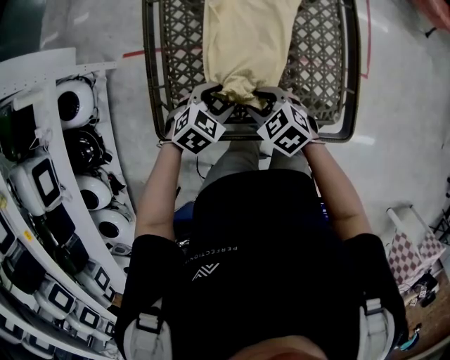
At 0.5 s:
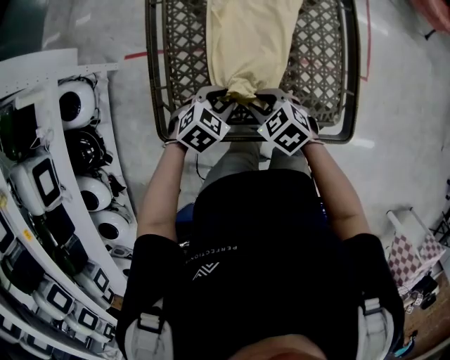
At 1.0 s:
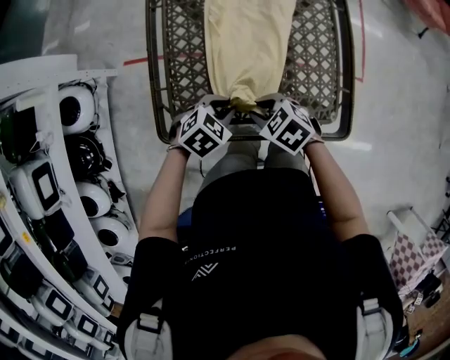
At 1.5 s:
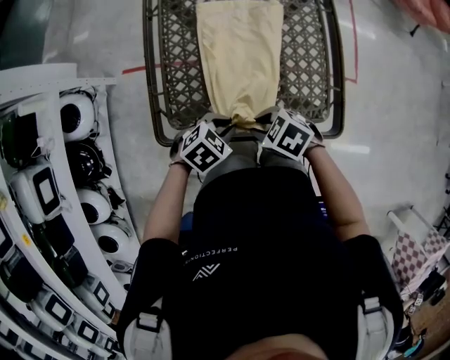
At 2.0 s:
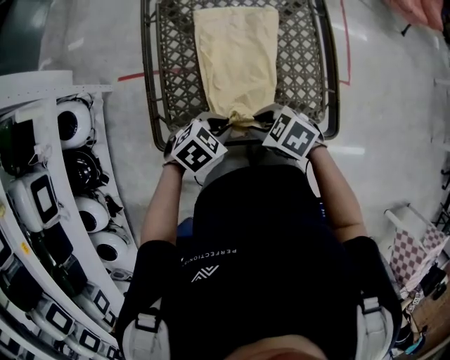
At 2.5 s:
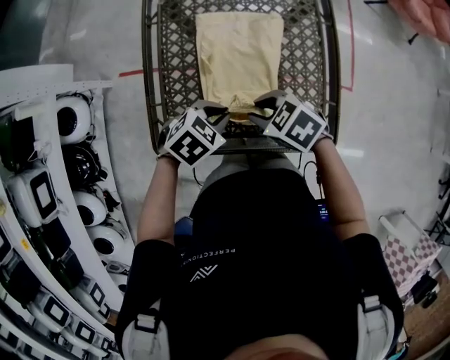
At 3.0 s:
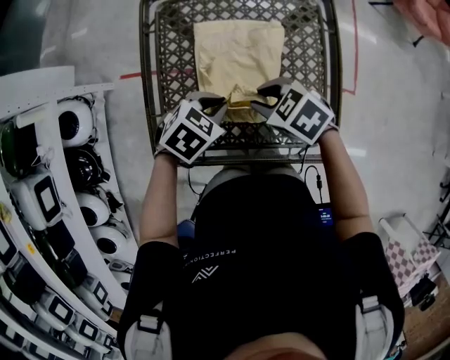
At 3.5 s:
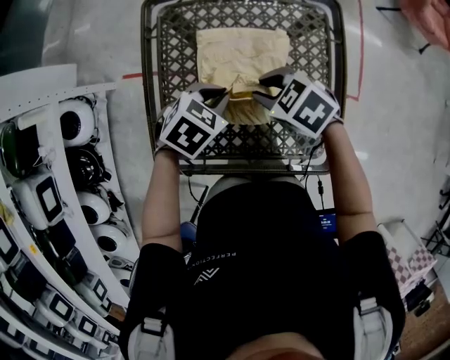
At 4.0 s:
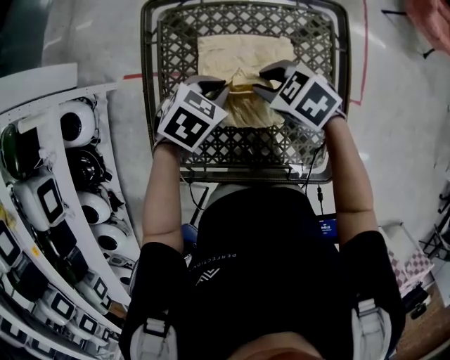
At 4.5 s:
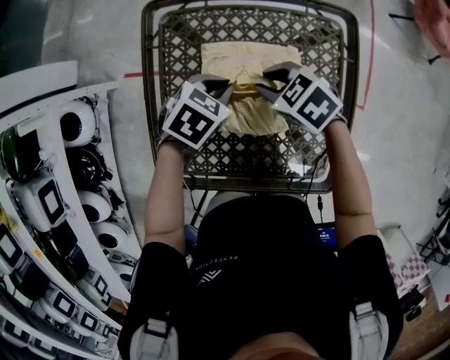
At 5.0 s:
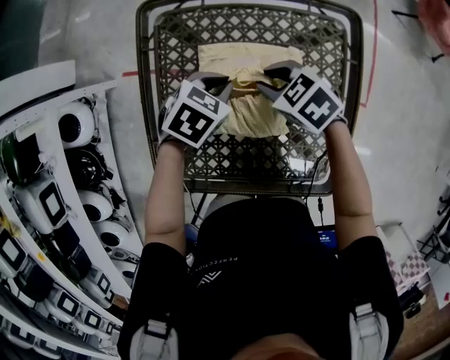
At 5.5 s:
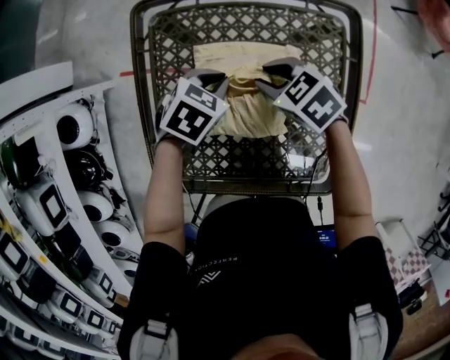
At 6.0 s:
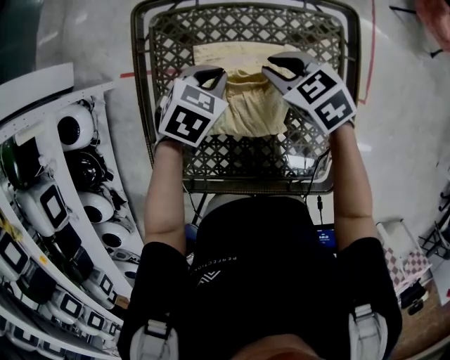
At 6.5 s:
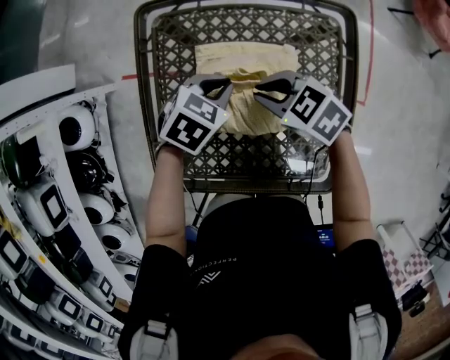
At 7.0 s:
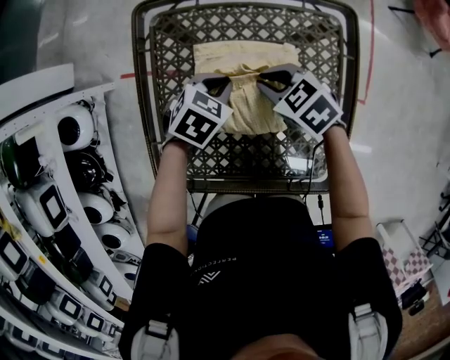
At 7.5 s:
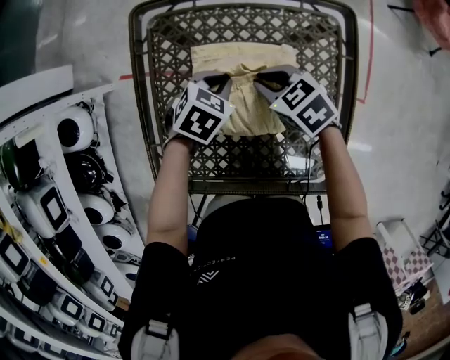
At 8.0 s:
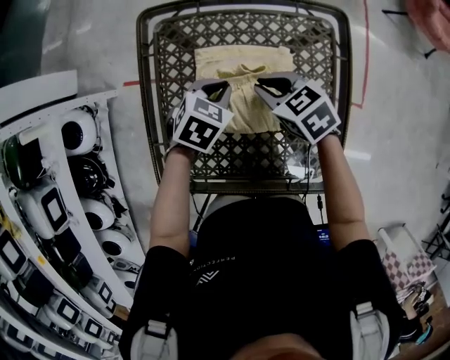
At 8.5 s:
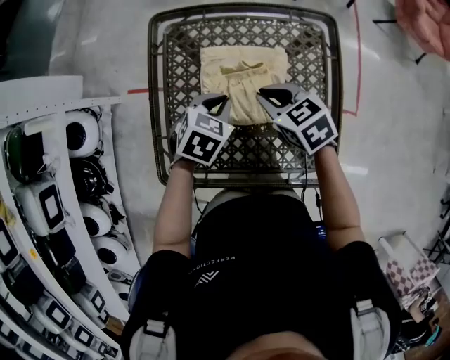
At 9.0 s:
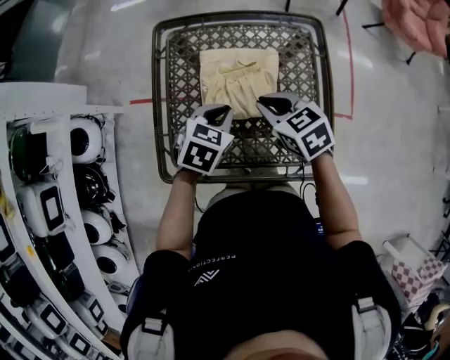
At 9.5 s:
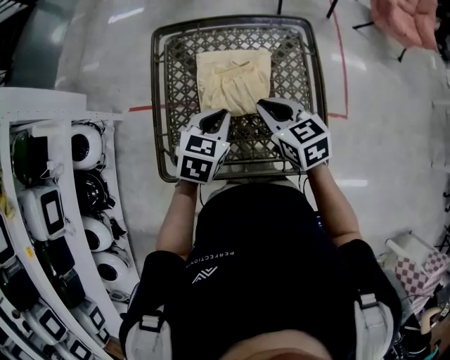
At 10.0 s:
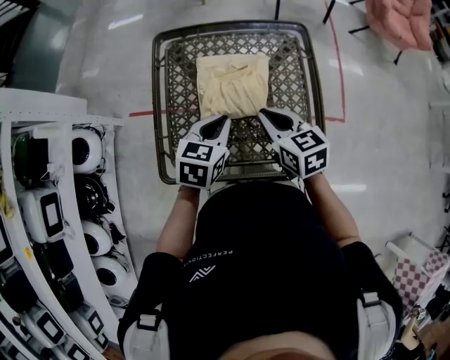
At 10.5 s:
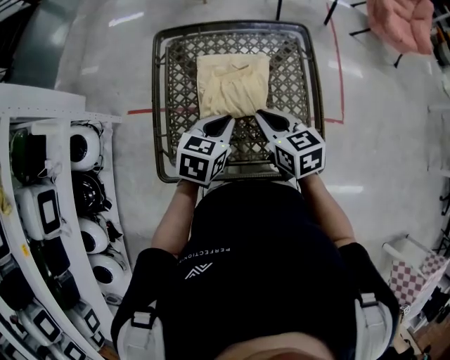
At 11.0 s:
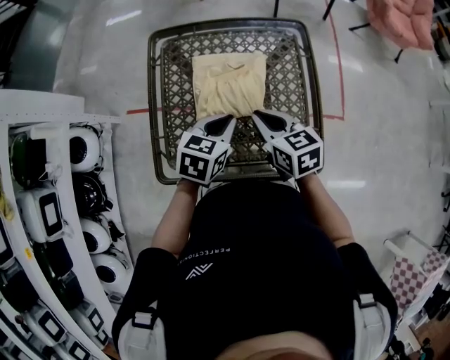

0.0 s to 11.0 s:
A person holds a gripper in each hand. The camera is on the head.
0.0 to 2.0 s: The left gripper changes place by about 10 cm, and closes its fingers; the right gripper travels upward by approximately 5 cm.
2.0 to 3.5 s: The right gripper shifts by approximately 20 cm. Meanwhile the left gripper shifts by approximately 20 cm.
3.5 to 5.5 s: The right gripper moves some 10 cm, while the left gripper ends up roughly 10 cm from where it was.
5.5 to 7.5 s: There are only small adjustments of the grippers.
7.5 to 9.0 s: The two grippers go approximately 15 cm backward and upward.
9.0 to 11.0 s: The left gripper changes place by roughly 5 cm.

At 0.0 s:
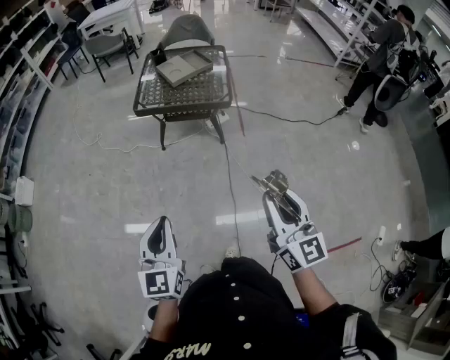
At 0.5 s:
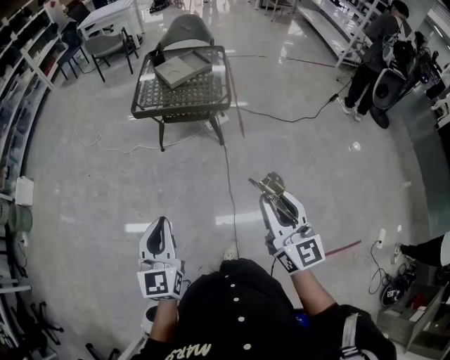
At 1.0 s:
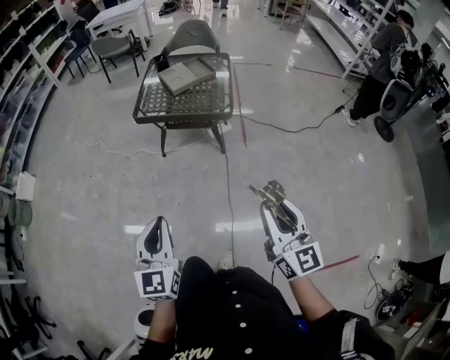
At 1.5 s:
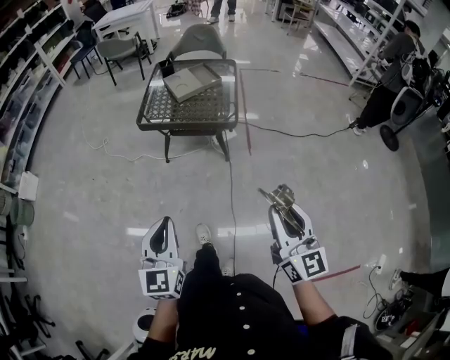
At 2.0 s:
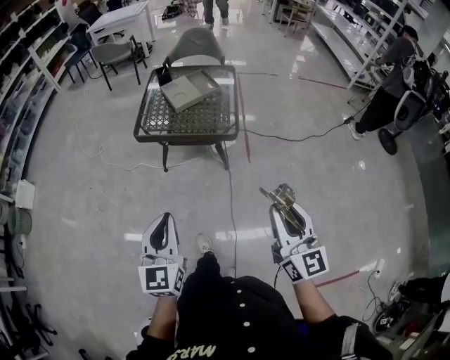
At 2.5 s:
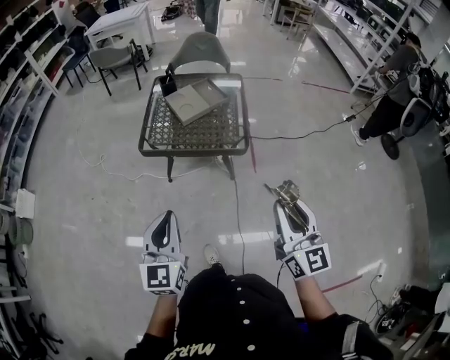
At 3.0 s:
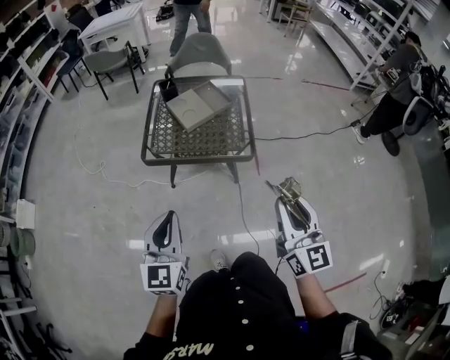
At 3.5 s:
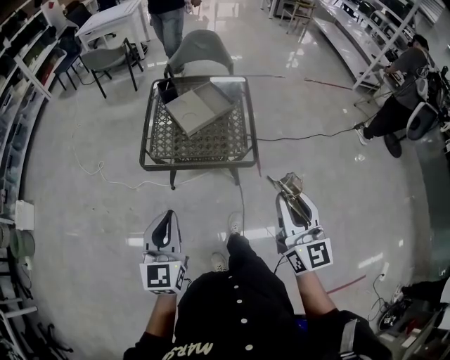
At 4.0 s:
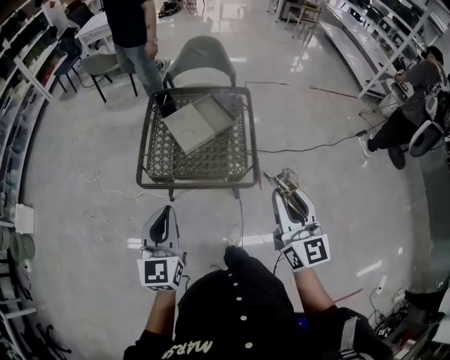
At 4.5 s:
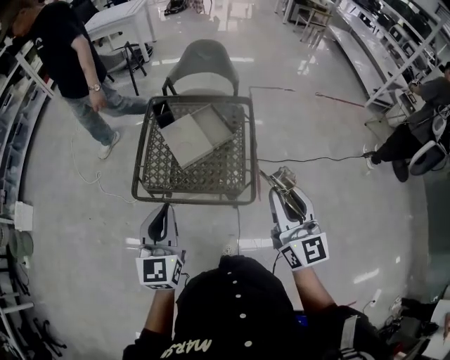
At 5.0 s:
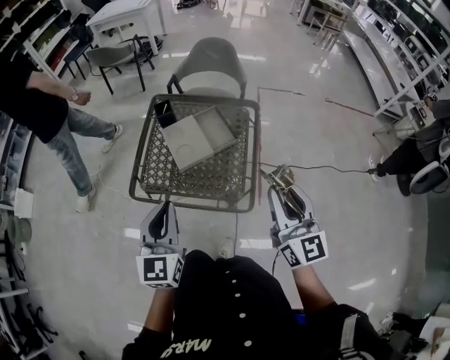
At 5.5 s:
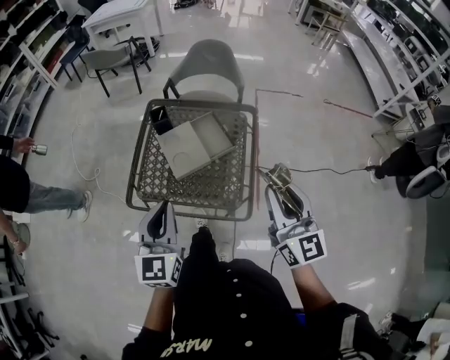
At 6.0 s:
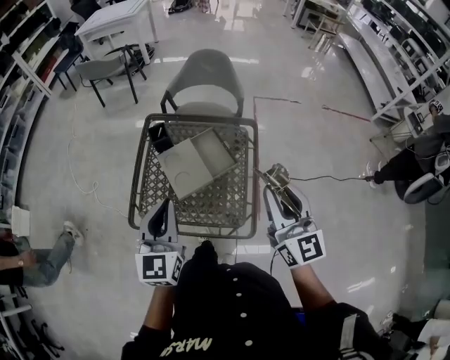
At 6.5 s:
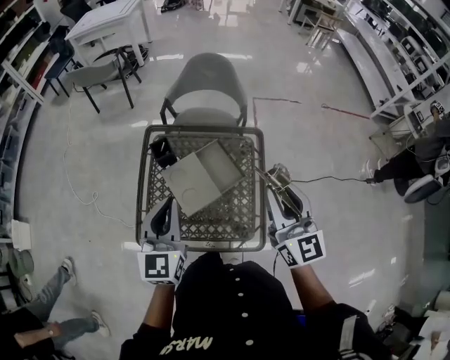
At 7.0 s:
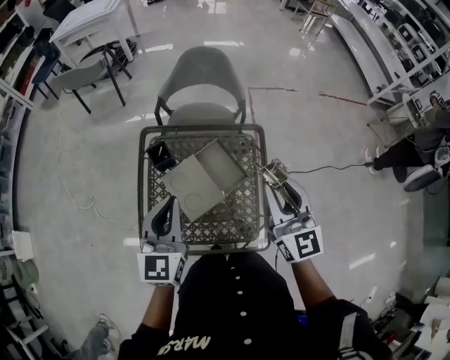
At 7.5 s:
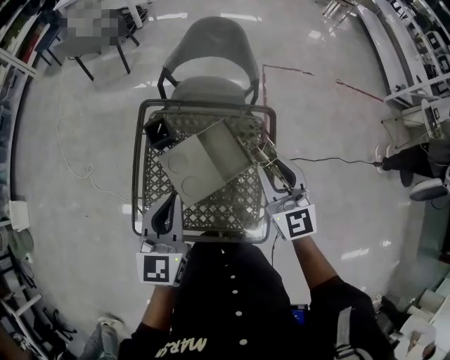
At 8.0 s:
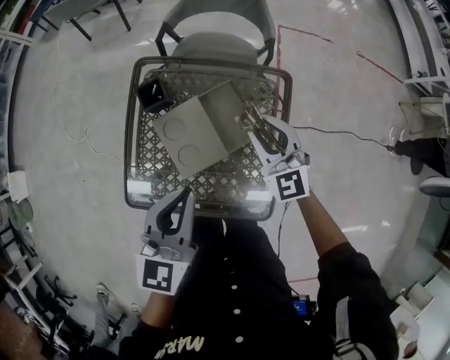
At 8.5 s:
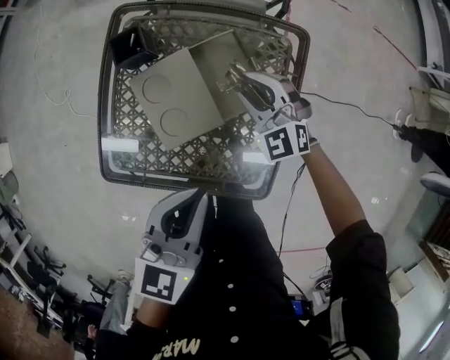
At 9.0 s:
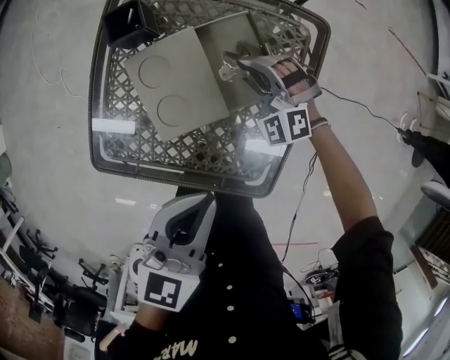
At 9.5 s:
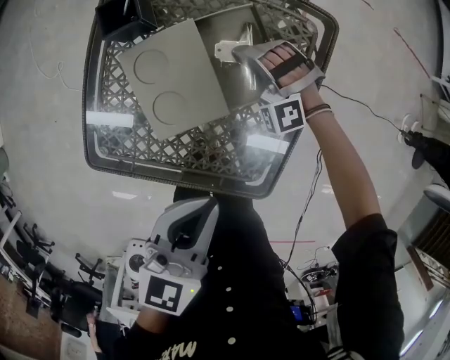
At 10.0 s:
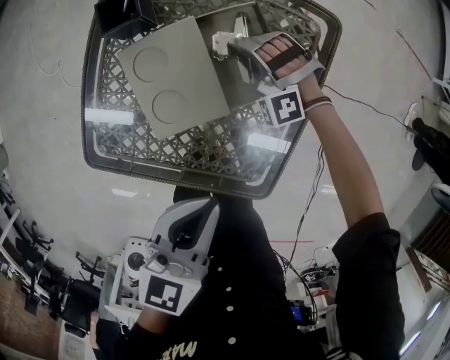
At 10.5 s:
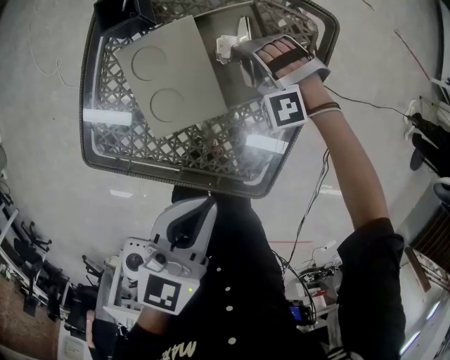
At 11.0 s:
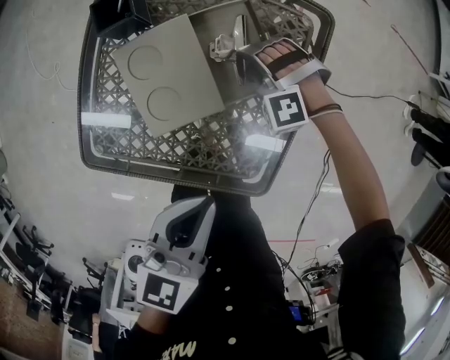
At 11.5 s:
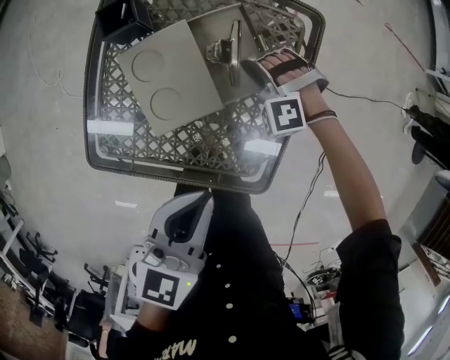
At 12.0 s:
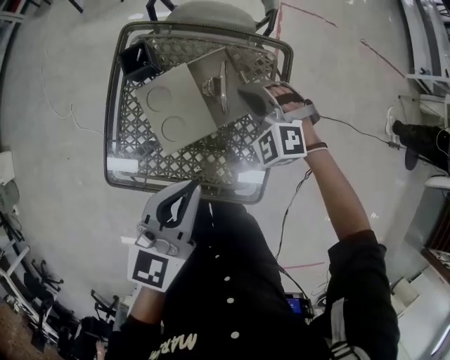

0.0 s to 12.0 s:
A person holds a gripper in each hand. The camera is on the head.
0.0 to 2.0 s: The two grippers go about 20 cm forward.
2.0 to 4.0 s: The two grippers go roughly 35 cm forward.
4.0 to 6.0 s: Both grippers travel together forward, roughly 25 cm.
6.0 to 8.0 s: The right gripper is displaced forward and downward by roughly 35 cm, and rotates some 30 degrees, while the left gripper goes approximately 15 cm forward and downward.
8.0 to 10.0 s: The left gripper is displaced downward, backward and to the right by approximately 15 cm. Meanwhile the right gripper moves downward, some 25 cm, and twists roughly 70 degrees counterclockwise, seen from behind.
10.0 to 12.0 s: The left gripper shifts about 10 cm upward, while the right gripper heads upward, covering about 15 cm, swivels some 30 degrees, and closes.

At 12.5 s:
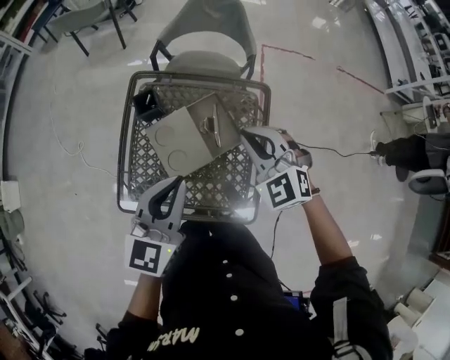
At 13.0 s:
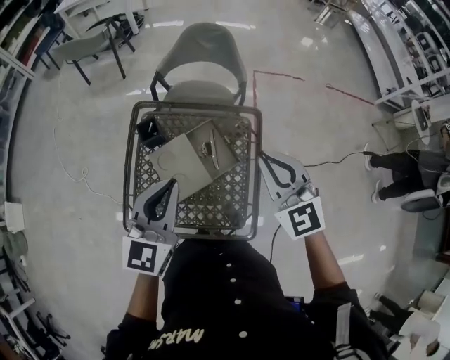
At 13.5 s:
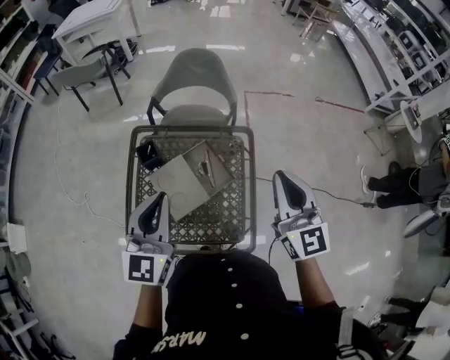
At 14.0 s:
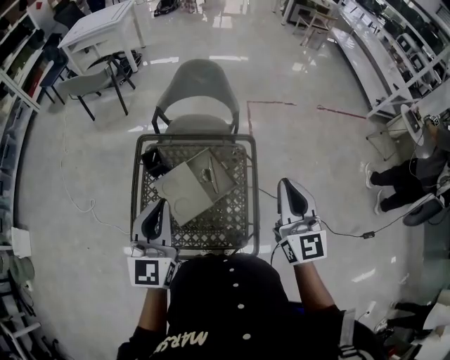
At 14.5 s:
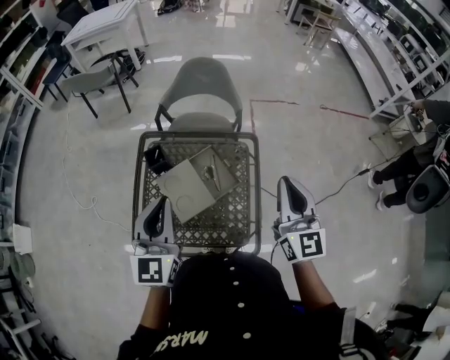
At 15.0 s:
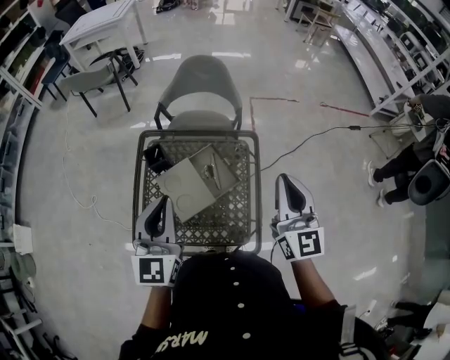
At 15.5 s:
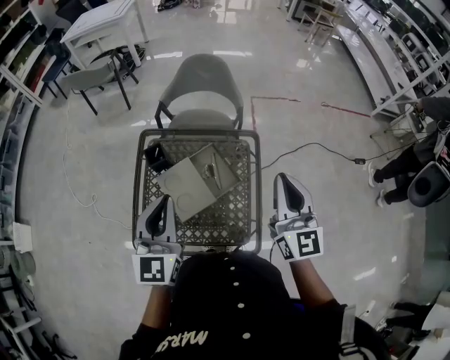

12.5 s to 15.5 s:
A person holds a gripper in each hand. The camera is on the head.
12.5 to 14.0 s: The right gripper goes some 20 cm upward, to the right and backward, and tilts its fingers approximately 30 degrees upward; the left gripper is displaced upward by approximately 10 cm.
14.0 to 15.5 s: The grippers make only small movements.

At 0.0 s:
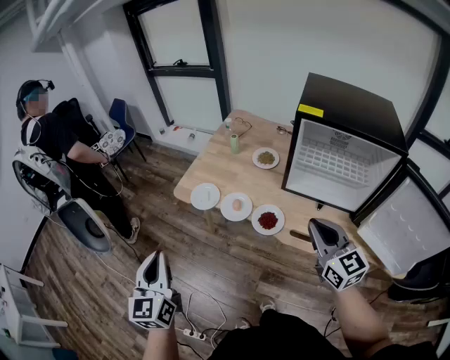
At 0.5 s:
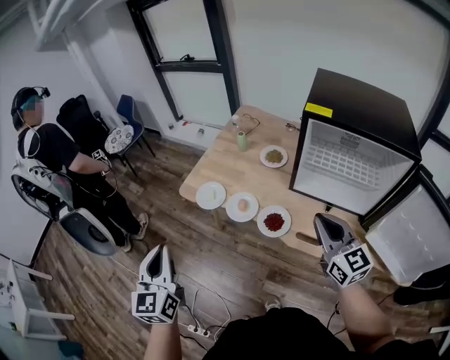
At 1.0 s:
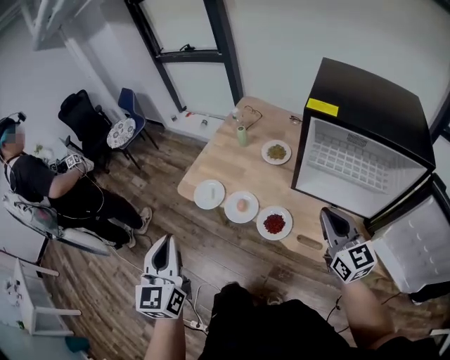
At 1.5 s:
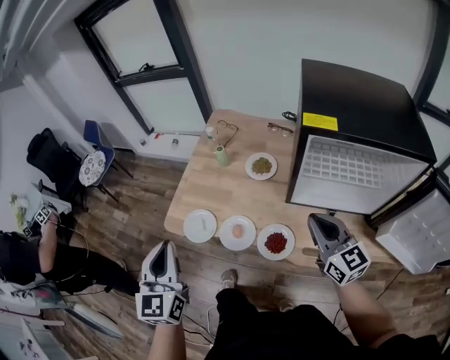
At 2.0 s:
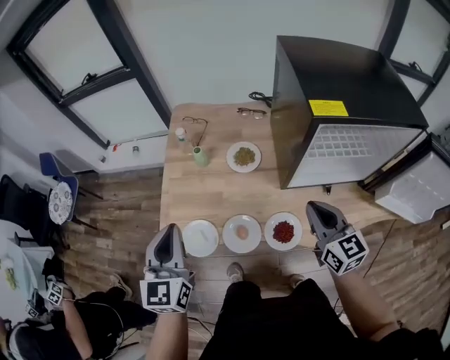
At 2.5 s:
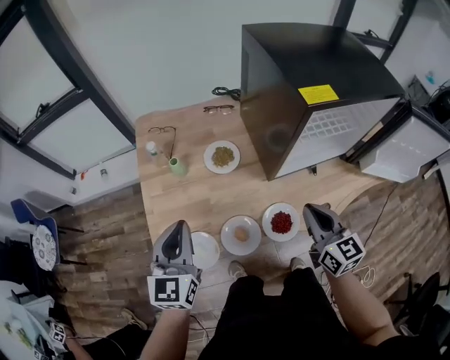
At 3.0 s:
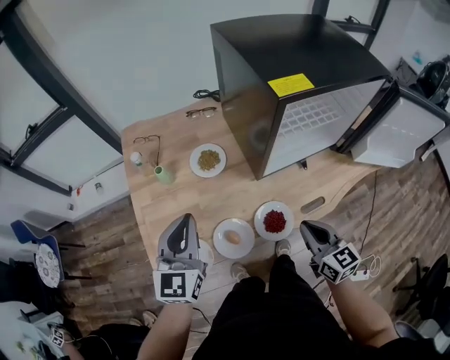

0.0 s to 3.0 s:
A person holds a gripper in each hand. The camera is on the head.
0.0 to 1.5 s: Both grippers move forward, about 20 cm.
1.5 to 3.0 s: The left gripper shifts by approximately 25 cm, and swivels about 40 degrees, while the right gripper travels downward by roughly 10 cm, and swivels some 40 degrees.
